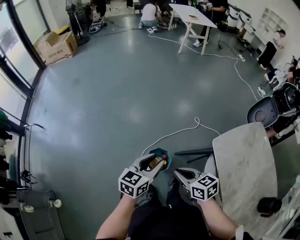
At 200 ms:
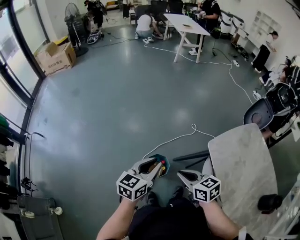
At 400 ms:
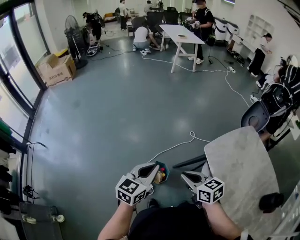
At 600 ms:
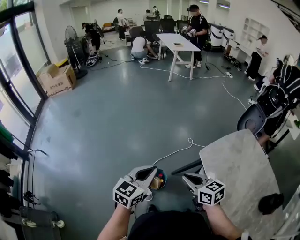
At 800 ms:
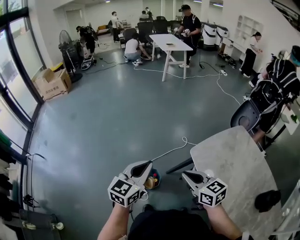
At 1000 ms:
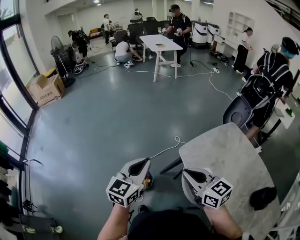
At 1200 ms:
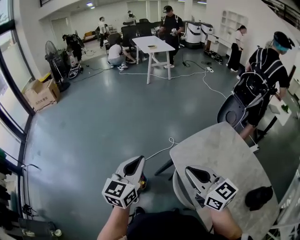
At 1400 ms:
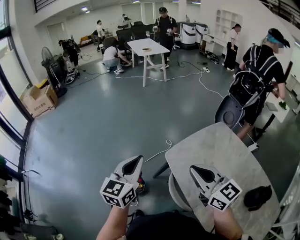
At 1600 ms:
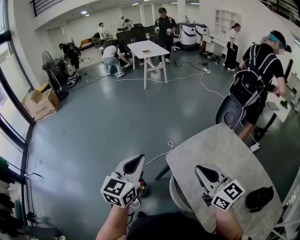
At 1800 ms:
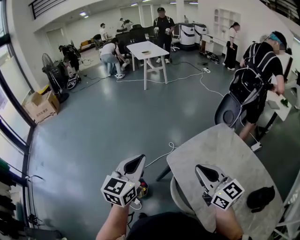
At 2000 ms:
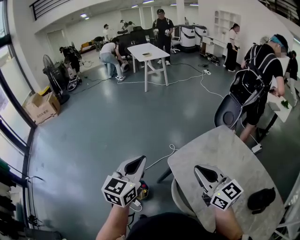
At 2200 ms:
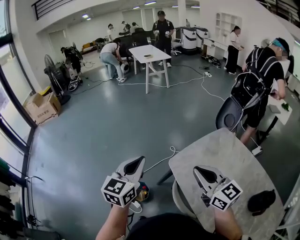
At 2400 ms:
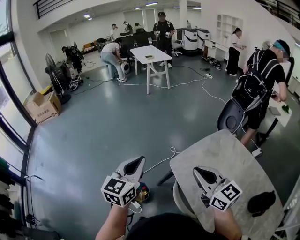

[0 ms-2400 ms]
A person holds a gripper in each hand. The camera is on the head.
0 ms to 1200 ms: The right gripper travels to the right and upward by about 35 cm, and swivels some 40 degrees, while the left gripper goes roughly 25 cm upward and to the right, rotates some 20 degrees, and closes its fingers.
1200 ms to 2400 ms: The left gripper changes place by some 5 cm; the right gripper moves to the right, about 5 cm.

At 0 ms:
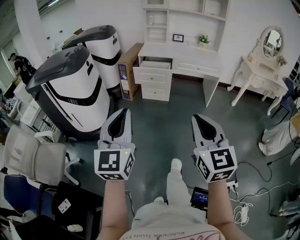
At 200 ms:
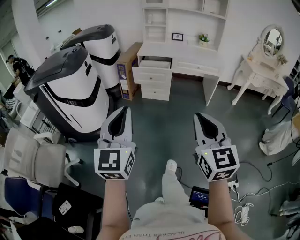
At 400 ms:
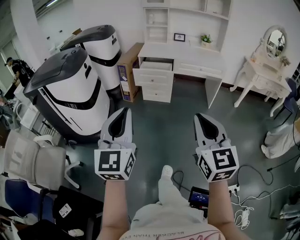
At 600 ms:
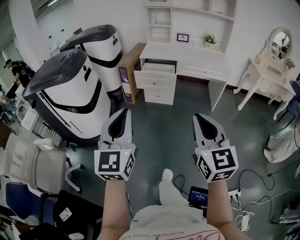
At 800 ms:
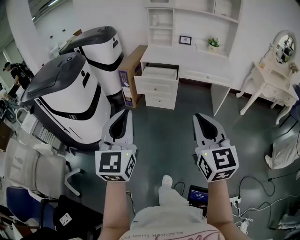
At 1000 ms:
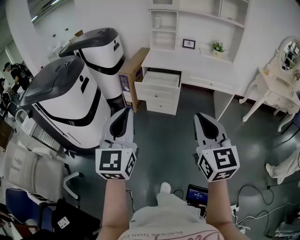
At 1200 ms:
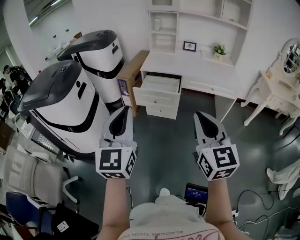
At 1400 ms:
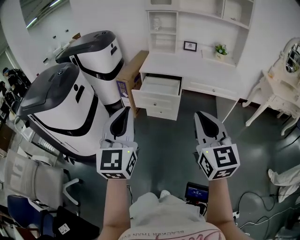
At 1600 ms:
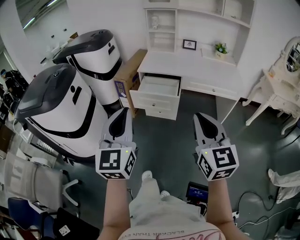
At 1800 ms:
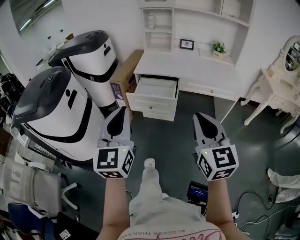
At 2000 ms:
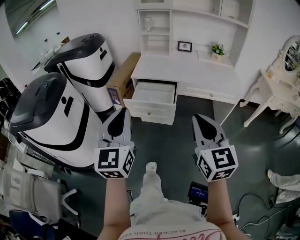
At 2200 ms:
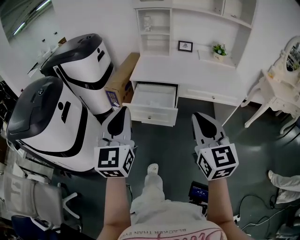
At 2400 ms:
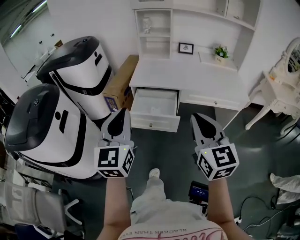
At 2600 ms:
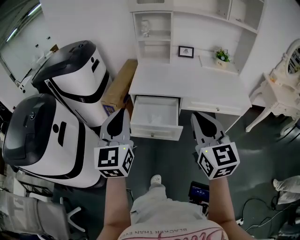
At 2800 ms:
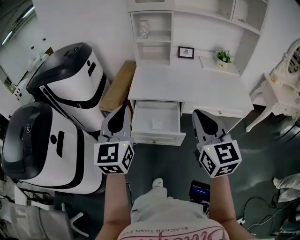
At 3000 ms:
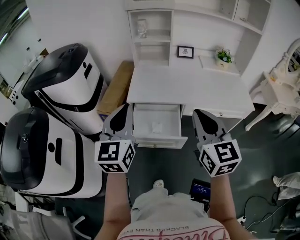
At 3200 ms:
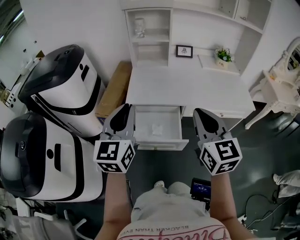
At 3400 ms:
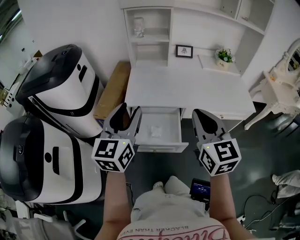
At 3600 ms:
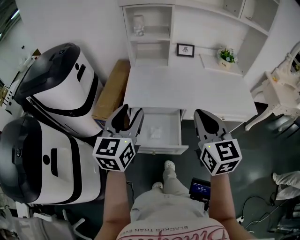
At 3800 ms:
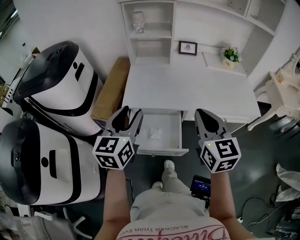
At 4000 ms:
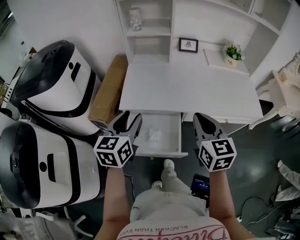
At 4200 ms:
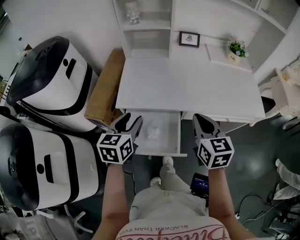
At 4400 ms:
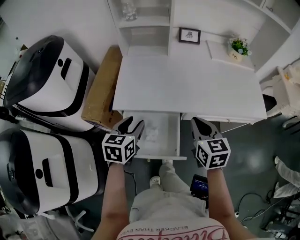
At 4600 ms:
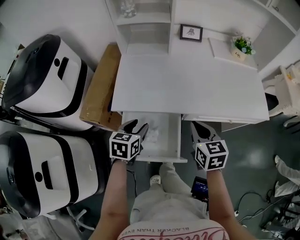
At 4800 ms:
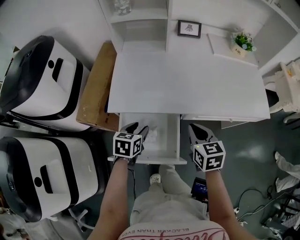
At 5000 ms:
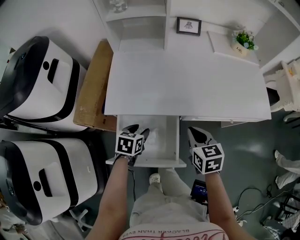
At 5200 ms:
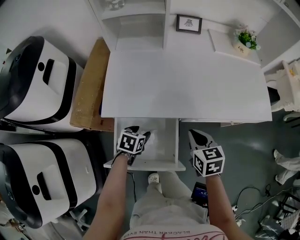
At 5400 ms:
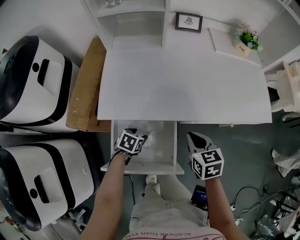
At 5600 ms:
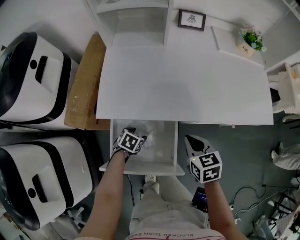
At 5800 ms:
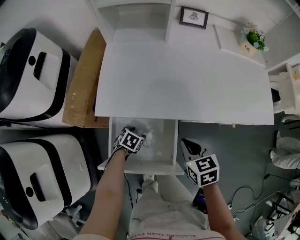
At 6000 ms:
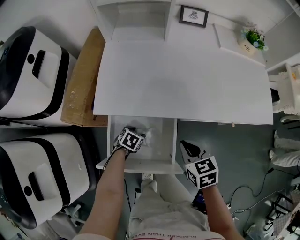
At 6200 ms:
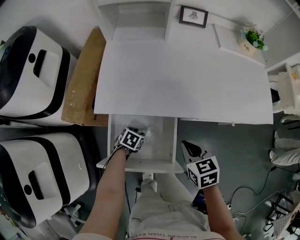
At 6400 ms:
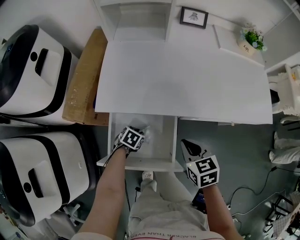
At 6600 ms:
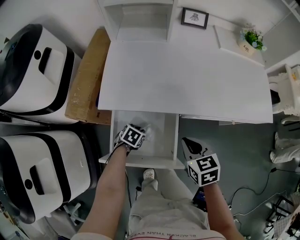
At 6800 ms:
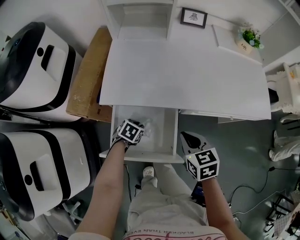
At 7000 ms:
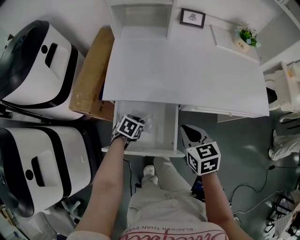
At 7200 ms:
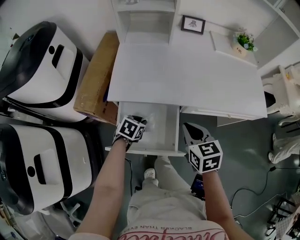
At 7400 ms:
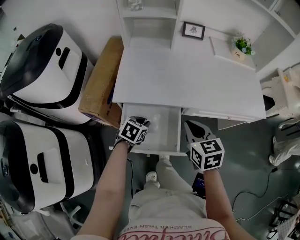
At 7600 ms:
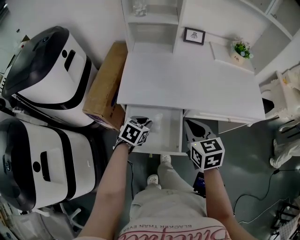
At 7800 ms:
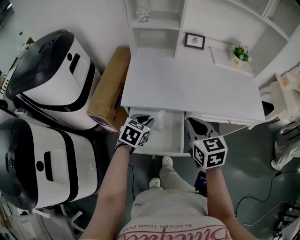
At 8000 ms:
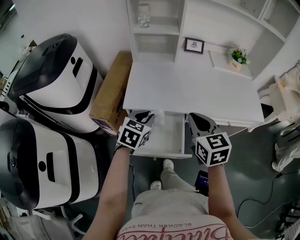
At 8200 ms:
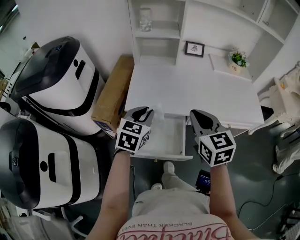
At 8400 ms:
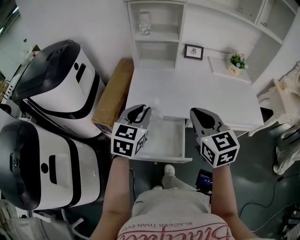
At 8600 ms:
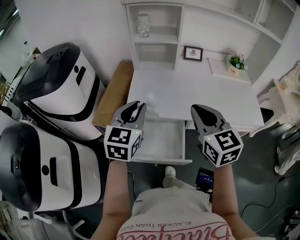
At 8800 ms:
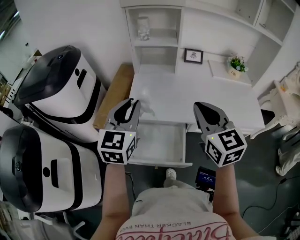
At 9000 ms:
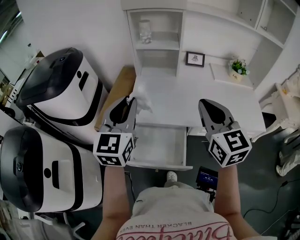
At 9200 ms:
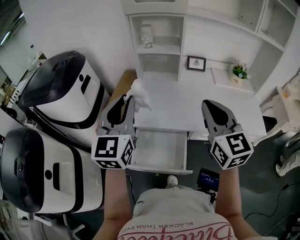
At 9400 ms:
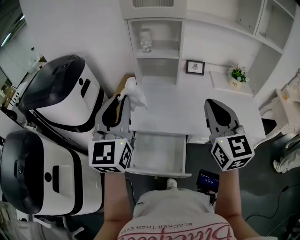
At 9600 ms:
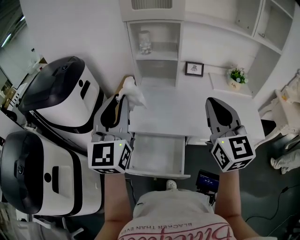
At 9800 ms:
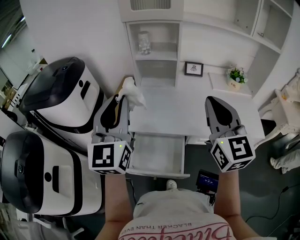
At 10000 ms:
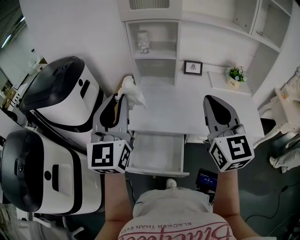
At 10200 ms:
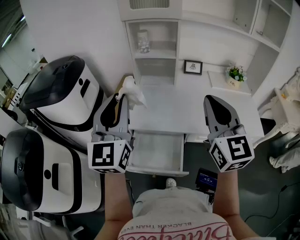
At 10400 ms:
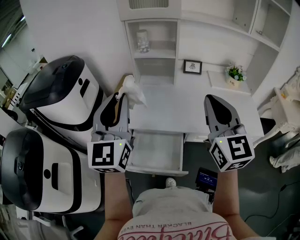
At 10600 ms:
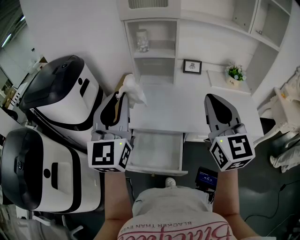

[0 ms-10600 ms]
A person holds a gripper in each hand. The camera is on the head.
0 ms to 1600 ms: Both grippers travel together forward, approximately 40 cm.
1600 ms to 3000 ms: The grippers both shift forward by roughly 40 cm.
3000 ms to 4600 ms: The grippers both shift downward and forward by roughly 35 cm. The left gripper tips its fingers downward by about 40 degrees, and opens up, while the right gripper turns by approximately 30 degrees.
4600 ms to 6000 ms: The right gripper moves downward, about 10 cm, while the left gripper is displaced downward by approximately 25 cm, and turns by approximately 30 degrees.
6000 ms to 7600 ms: The left gripper goes about 20 cm upward, changes its angle by approximately 20 degrees, and closes up. Meanwhile the right gripper shifts some 15 cm upward.
7600 ms to 9000 ms: The left gripper travels upward by some 35 cm, and tips its fingers upward by approximately 50 degrees. Meanwhile the right gripper travels upward by approximately 20 cm, and changes its angle by approximately 30 degrees.
9000 ms to 10600 ms: Both grippers move upward, some 5 cm.

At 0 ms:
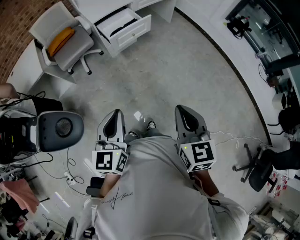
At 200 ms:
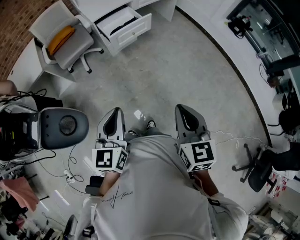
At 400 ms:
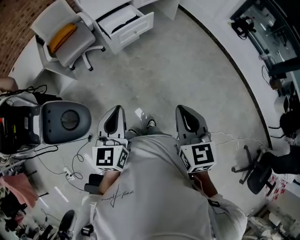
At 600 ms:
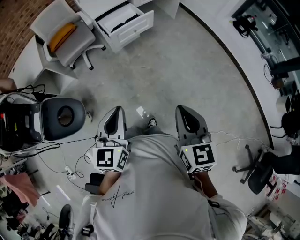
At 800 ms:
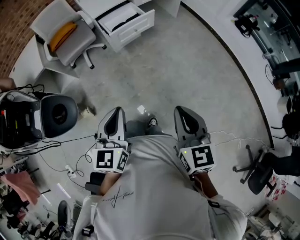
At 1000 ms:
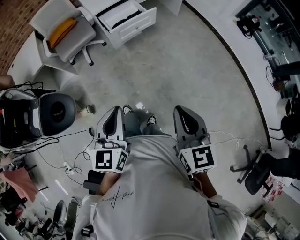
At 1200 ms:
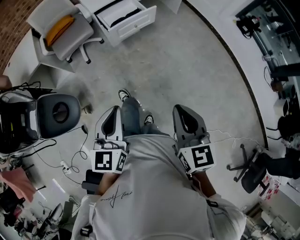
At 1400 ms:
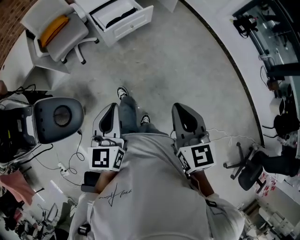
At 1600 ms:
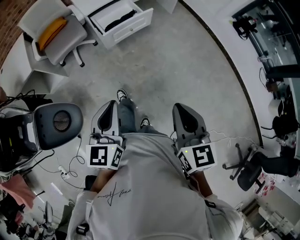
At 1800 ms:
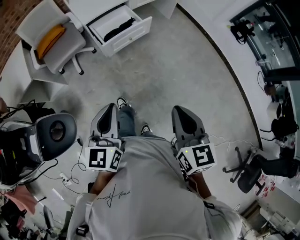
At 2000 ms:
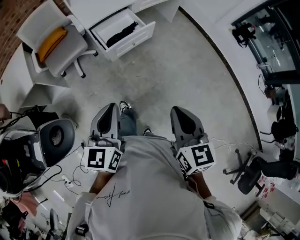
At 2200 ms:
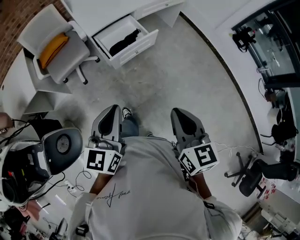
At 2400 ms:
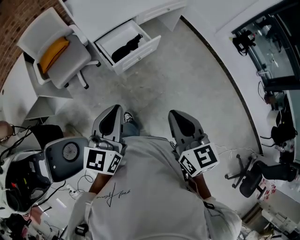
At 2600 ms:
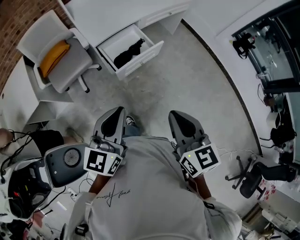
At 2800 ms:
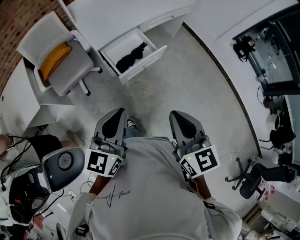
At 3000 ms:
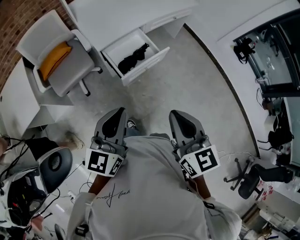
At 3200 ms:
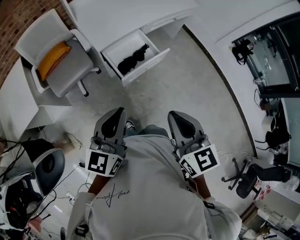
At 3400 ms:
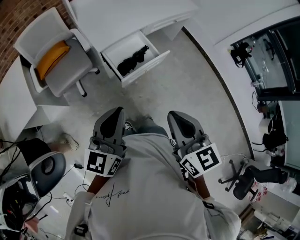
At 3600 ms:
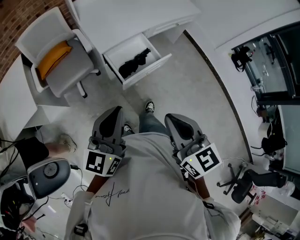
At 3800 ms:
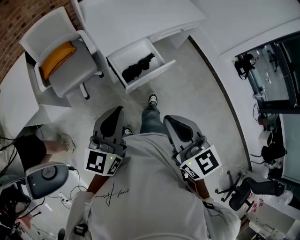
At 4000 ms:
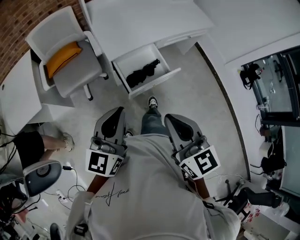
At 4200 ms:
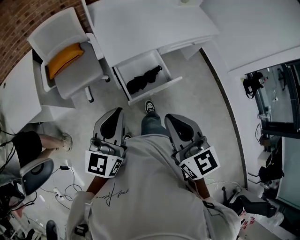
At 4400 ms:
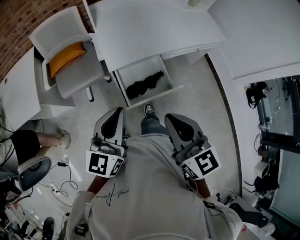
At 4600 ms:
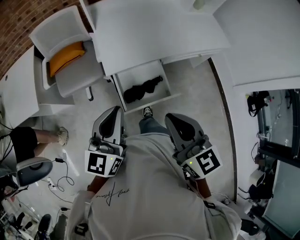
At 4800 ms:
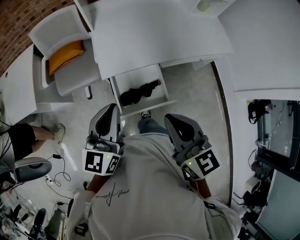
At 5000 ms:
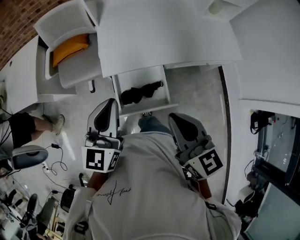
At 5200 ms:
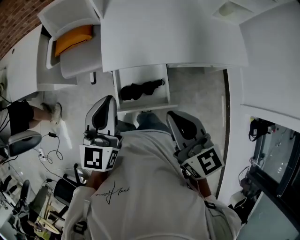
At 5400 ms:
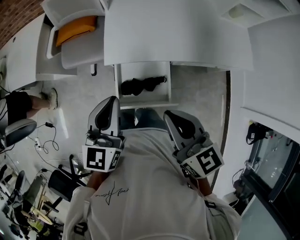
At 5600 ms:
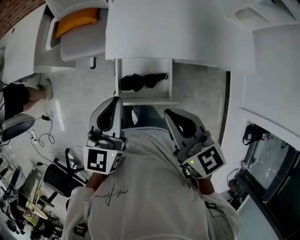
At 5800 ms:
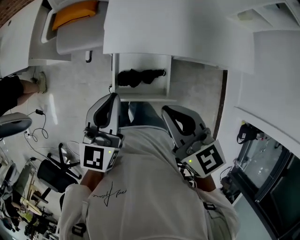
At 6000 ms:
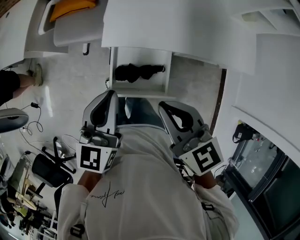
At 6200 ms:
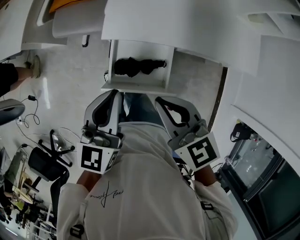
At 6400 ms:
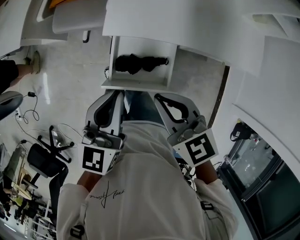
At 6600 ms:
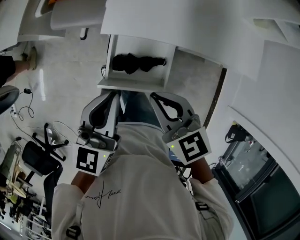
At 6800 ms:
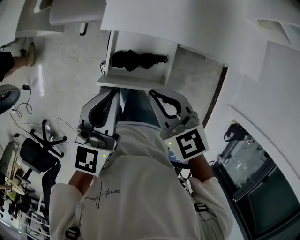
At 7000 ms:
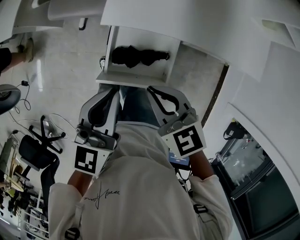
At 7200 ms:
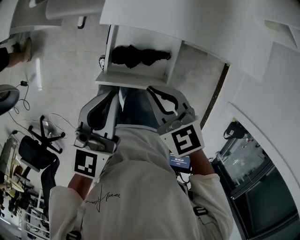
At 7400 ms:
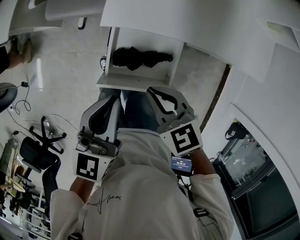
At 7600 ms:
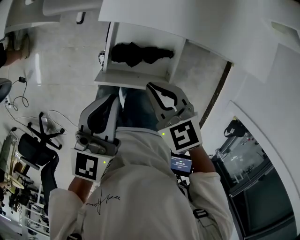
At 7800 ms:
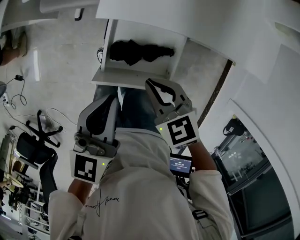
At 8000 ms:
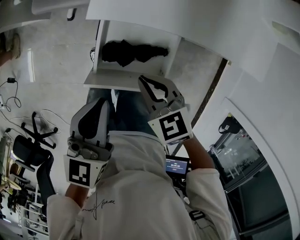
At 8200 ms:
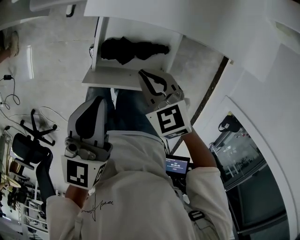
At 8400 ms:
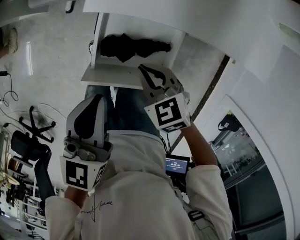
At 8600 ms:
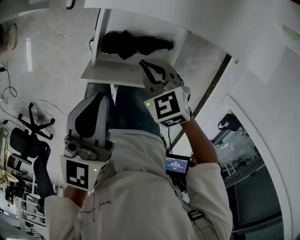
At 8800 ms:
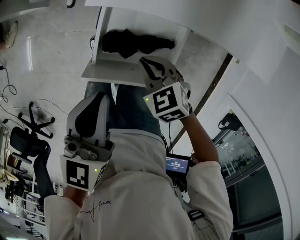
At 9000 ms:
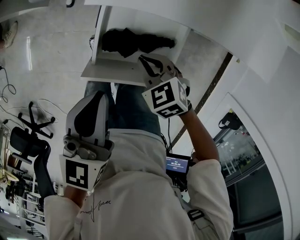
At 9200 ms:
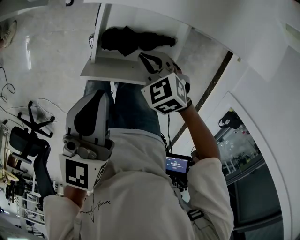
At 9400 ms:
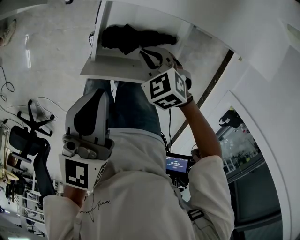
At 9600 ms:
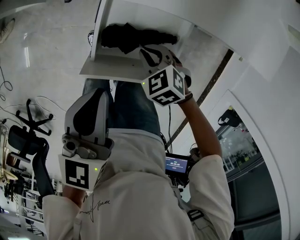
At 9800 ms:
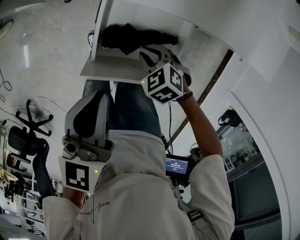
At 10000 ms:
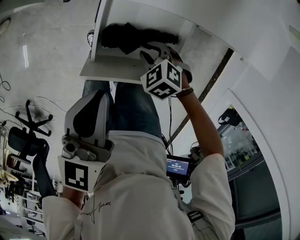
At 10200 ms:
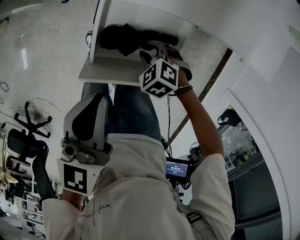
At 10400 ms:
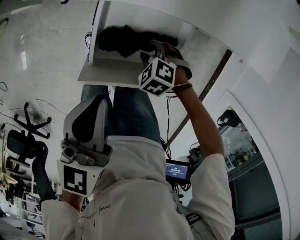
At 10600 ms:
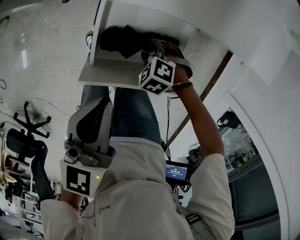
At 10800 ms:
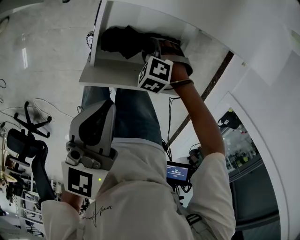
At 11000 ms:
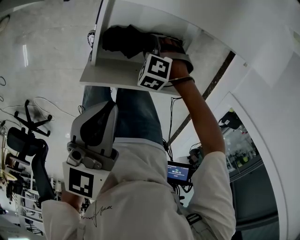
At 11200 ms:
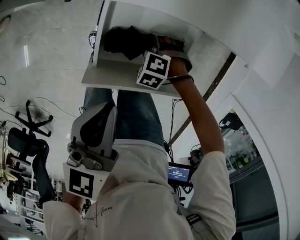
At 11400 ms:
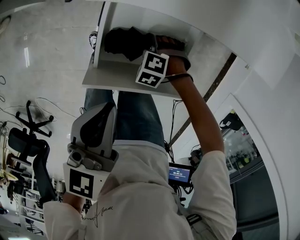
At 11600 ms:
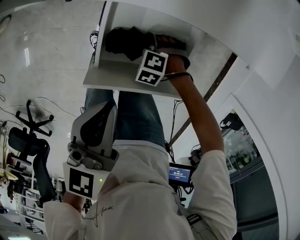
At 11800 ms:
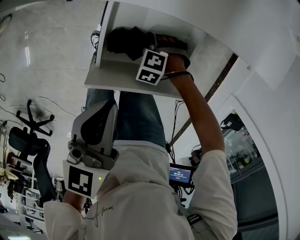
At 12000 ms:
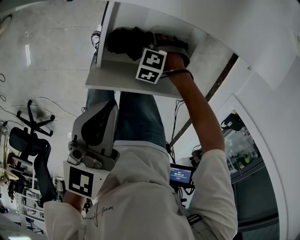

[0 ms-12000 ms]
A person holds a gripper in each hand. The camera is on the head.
0 ms to 1600 ms: Both grippers move forward, some 10 cm.
1600 ms to 3000 ms: The two grippers go about 25 cm forward and to the left.
3000 ms to 4400 ms: The two grippers go approximately 20 cm forward. The right gripper changes its angle by approximately 20 degrees.
4400 ms to 6000 ms: The right gripper moves about 20 cm, and changes its angle by about 40 degrees. The left gripper moves some 15 cm, and changes its angle by roughly 30 degrees.
6000 ms to 7600 ms: The left gripper goes roughly 10 cm downward. The right gripper heads downward, covering roughly 20 cm, and swivels about 20 degrees.
7600 ms to 9000 ms: The right gripper goes about 15 cm downward.
9000 ms to 10400 ms: The right gripper travels downward by approximately 10 cm, rotates some 30 degrees, and opens its fingers.
10400 ms to 12000 ms: The right gripper travels downward by approximately 5 cm.
